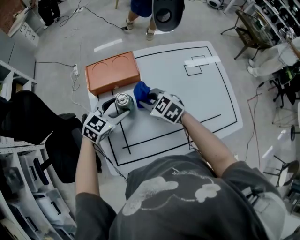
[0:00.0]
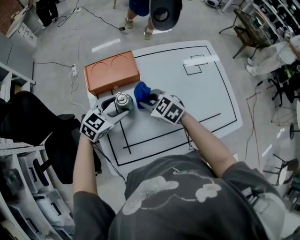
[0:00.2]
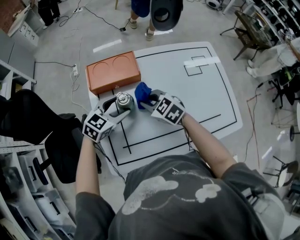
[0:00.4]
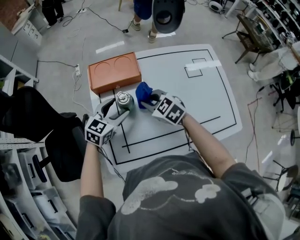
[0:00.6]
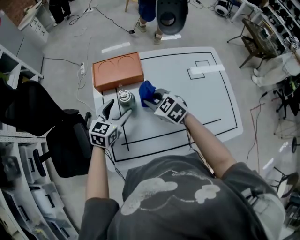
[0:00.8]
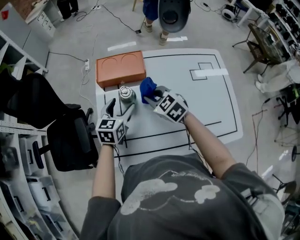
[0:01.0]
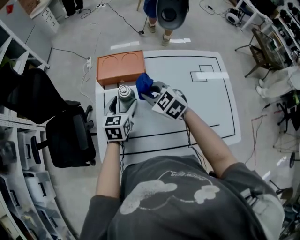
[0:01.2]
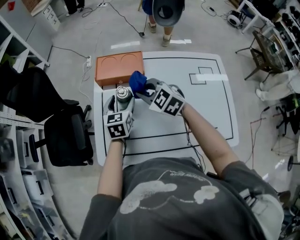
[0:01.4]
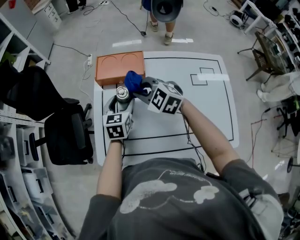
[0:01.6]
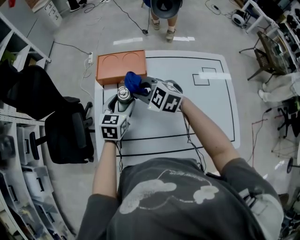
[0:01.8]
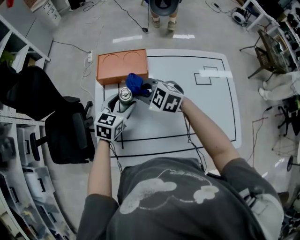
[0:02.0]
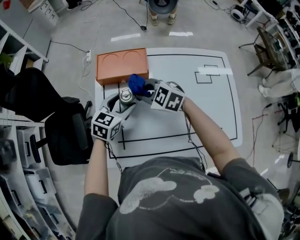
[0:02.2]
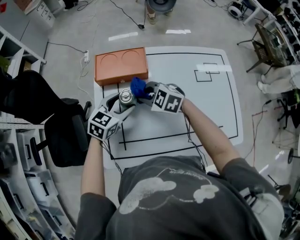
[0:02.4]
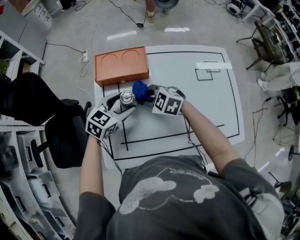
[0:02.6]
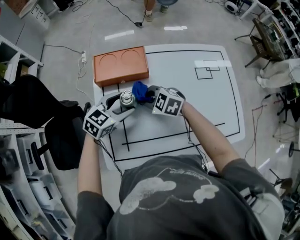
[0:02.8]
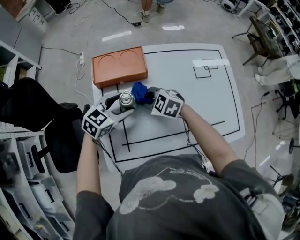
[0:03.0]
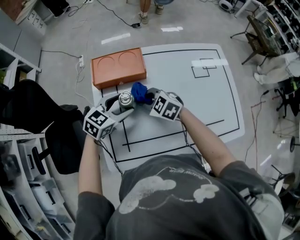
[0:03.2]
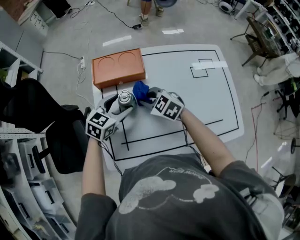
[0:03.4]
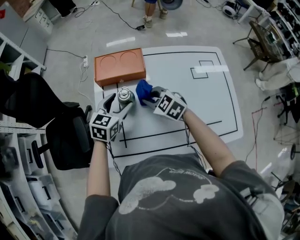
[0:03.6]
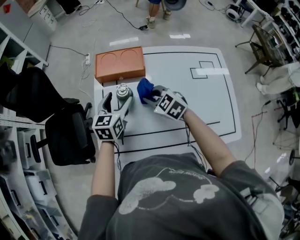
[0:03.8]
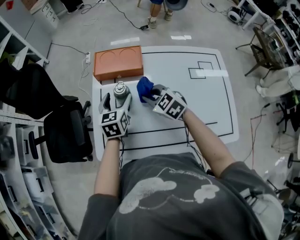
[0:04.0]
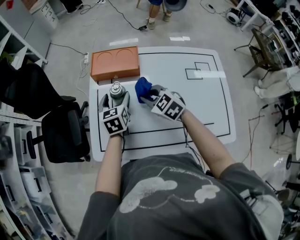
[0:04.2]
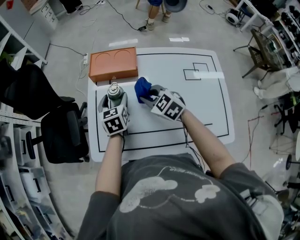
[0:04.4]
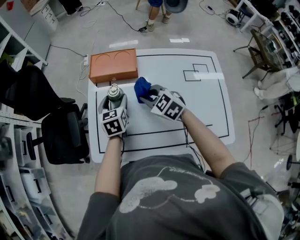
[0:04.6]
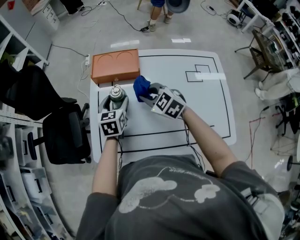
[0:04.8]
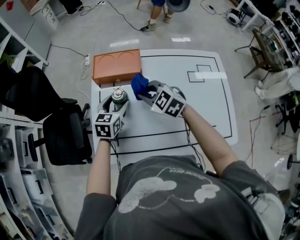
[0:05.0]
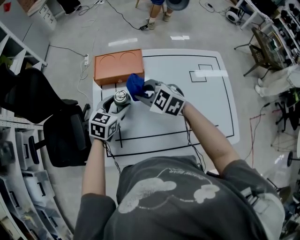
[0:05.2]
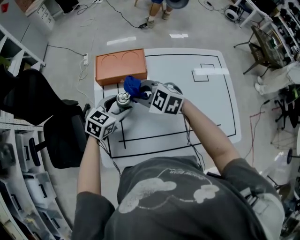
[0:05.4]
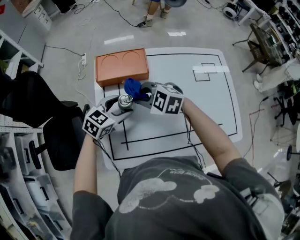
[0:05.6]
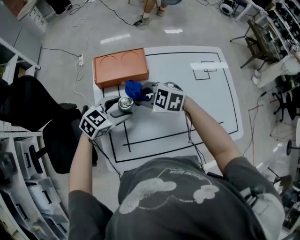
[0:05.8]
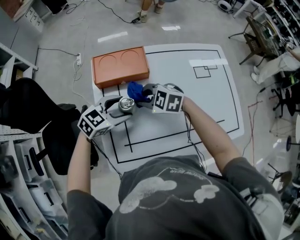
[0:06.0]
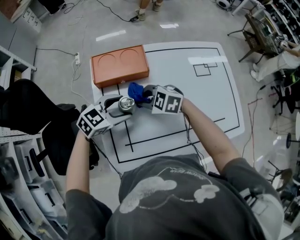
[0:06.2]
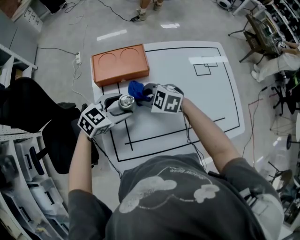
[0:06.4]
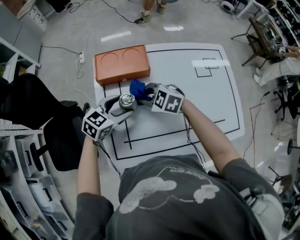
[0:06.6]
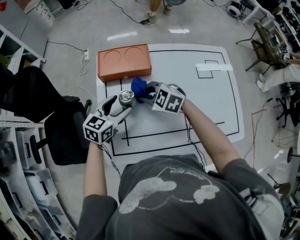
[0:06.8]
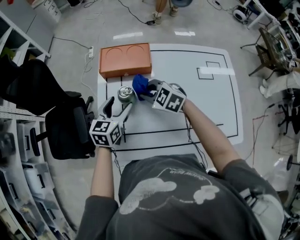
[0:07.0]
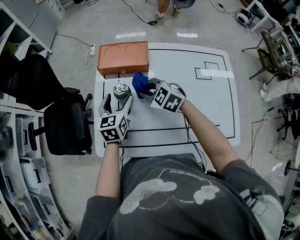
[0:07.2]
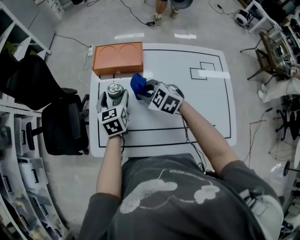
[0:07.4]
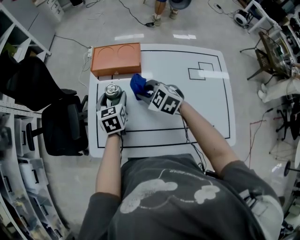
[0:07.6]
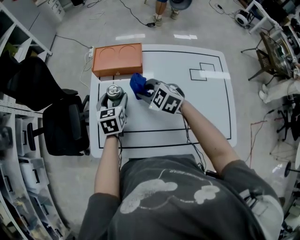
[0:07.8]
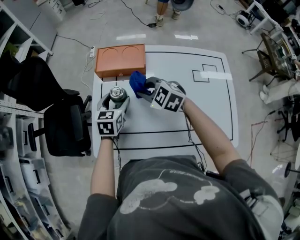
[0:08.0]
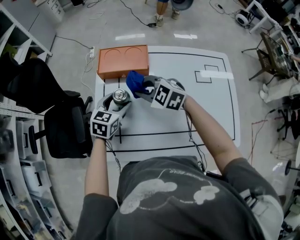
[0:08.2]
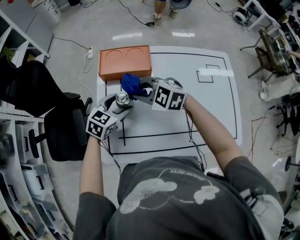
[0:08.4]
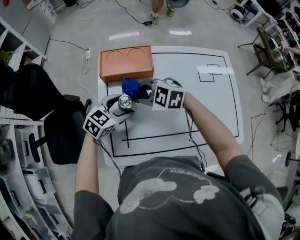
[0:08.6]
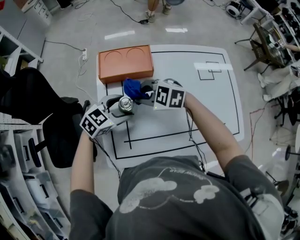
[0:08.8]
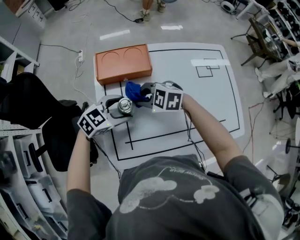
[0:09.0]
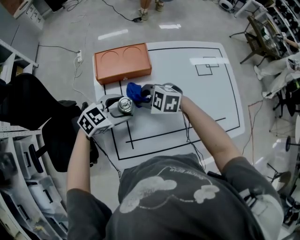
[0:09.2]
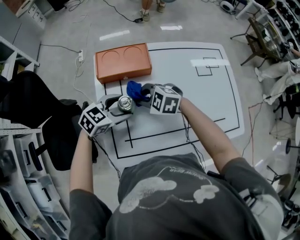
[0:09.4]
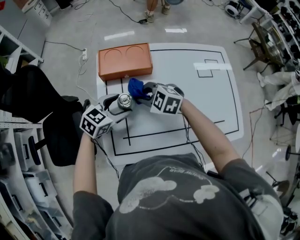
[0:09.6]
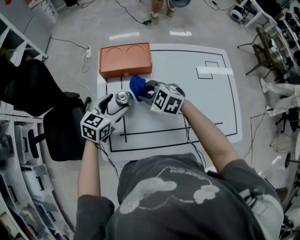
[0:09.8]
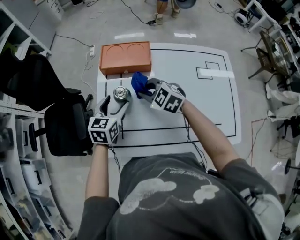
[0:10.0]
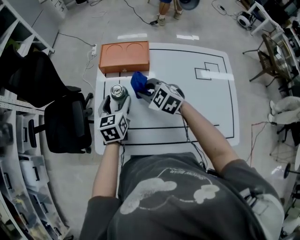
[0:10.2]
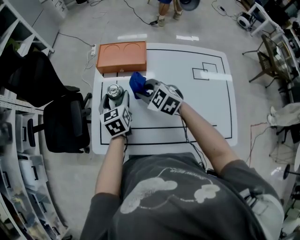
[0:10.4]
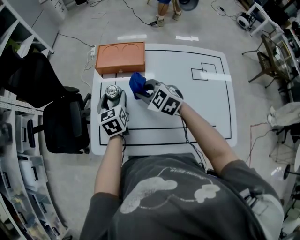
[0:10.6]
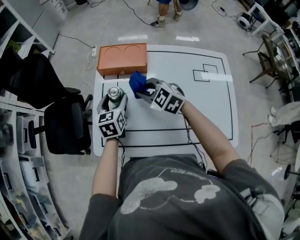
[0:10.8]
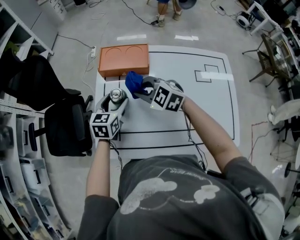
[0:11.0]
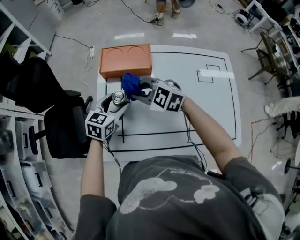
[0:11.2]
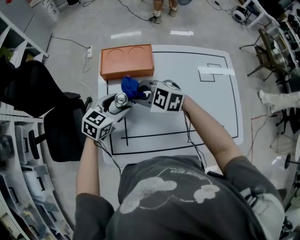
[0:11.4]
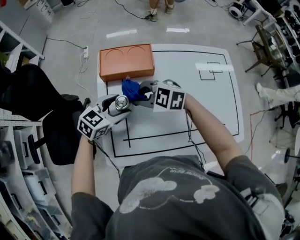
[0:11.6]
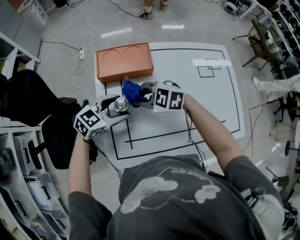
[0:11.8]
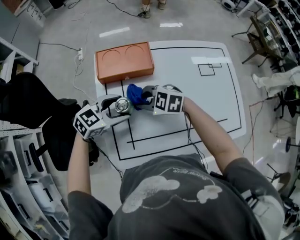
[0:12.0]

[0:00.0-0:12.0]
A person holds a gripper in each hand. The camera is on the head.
0:00.0 to 0:01.6: The left gripper rotates approximately 50 degrees; the right gripper is displaced upward by some 5 cm, and swivels approximately 30 degrees.
0:01.6 to 0:03.0: The right gripper shifts roughly 10 cm downward. Meanwhile the left gripper swivels approximately 50 degrees.
0:03.0 to 0:04.4: The right gripper shifts by some 10 cm. The left gripper swivels approximately 60 degrees.
0:04.4 to 0:06.0: The right gripper changes place by roughly 10 cm. The left gripper swivels about 70 degrees.
0:06.0 to 0:07.6: The right gripper changes place by approximately 5 cm, while the left gripper rotates some 70 degrees.
0:07.6 to 0:09.0: The right gripper changes place by some 10 cm. Meanwhile the left gripper turns by approximately 80 degrees.
0:09.0 to 0:10.4: The right gripper ends up roughly 5 cm from where it was, while the left gripper swivels about 80 degrees.
0:10.4 to 0:12.0: The right gripper moves some 5 cm. Meanwhile the left gripper swivels approximately 80 degrees.

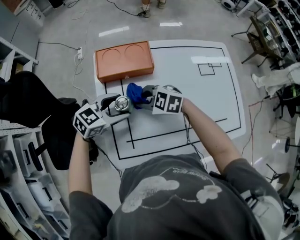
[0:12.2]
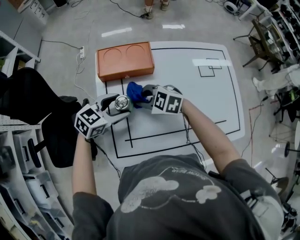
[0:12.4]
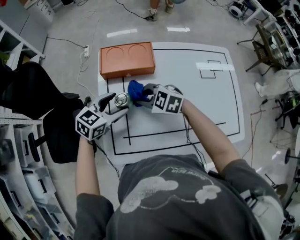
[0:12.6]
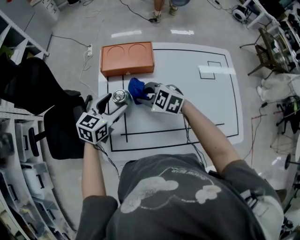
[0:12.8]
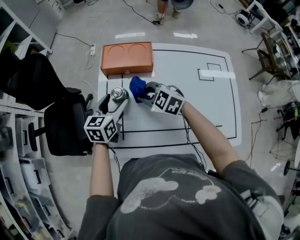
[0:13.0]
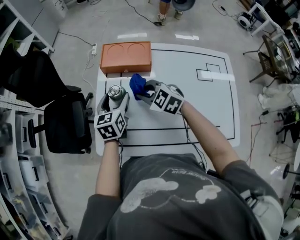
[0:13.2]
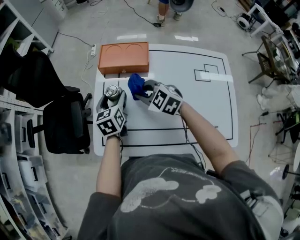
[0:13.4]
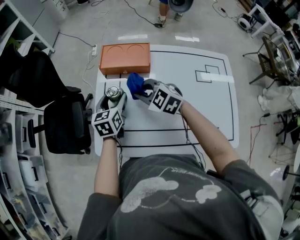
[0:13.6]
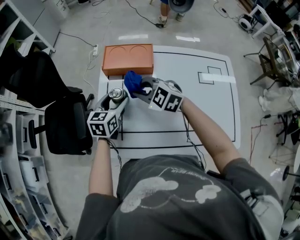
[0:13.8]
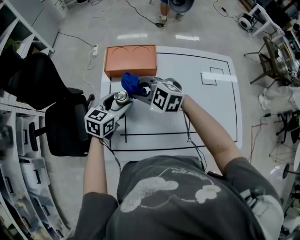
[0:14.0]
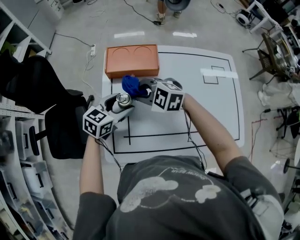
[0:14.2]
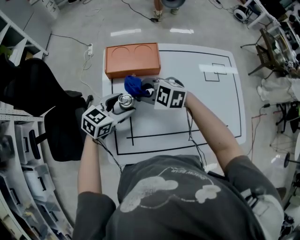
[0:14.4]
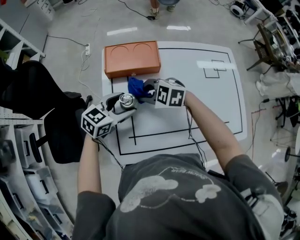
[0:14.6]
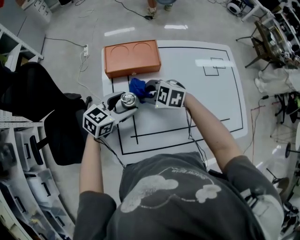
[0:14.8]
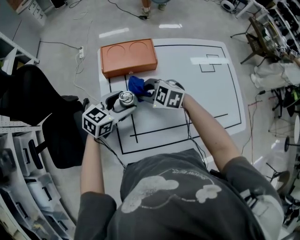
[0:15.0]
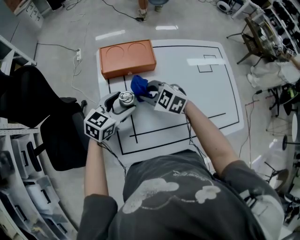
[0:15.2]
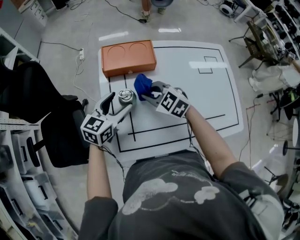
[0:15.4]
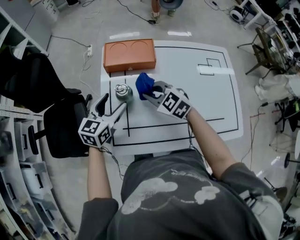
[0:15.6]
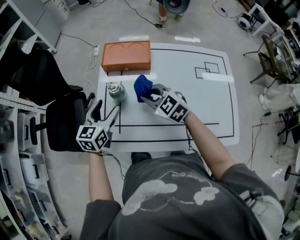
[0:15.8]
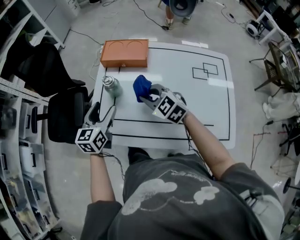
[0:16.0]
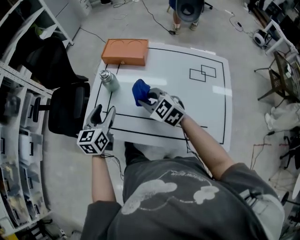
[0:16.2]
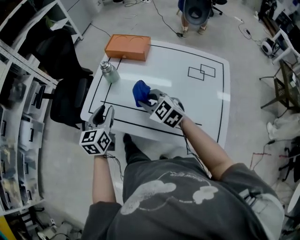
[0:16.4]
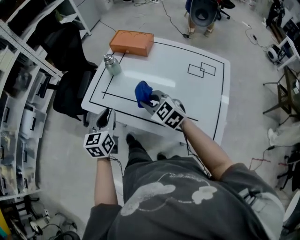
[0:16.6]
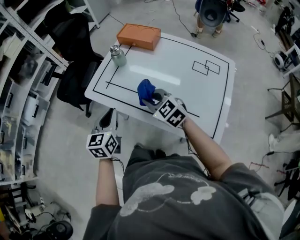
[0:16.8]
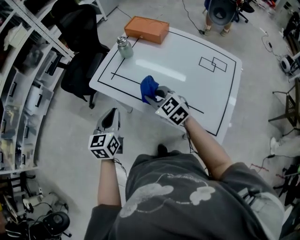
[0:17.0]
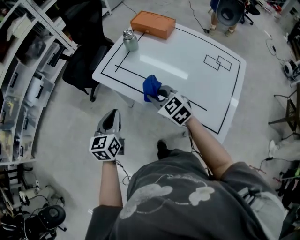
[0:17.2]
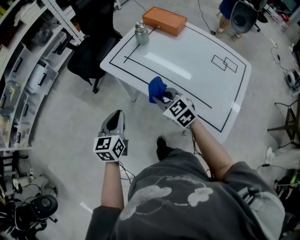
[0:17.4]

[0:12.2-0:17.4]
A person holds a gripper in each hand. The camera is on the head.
0:12.2 to 0:14.0: The right gripper heads upward, covering approximately 5 cm, while the left gripper rotates some 40 degrees.
0:14.0 to 0:15.6: The left gripper shifts by roughly 5 cm; the right gripper moves roughly 5 cm, and swivels some 20 degrees.
0:15.6 to 0:17.4: The left gripper changes place by about 40 cm, turns by some 50 degrees, and closes. Meanwhile the right gripper ends up approximately 30 cm from where it was, and rotates about 20 degrees.

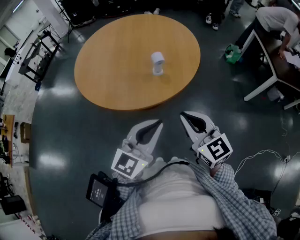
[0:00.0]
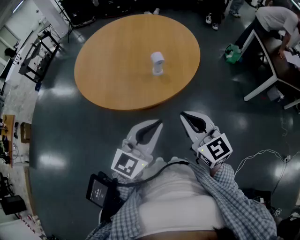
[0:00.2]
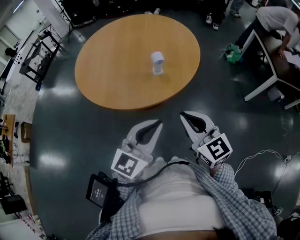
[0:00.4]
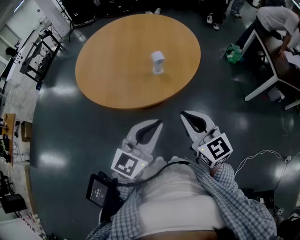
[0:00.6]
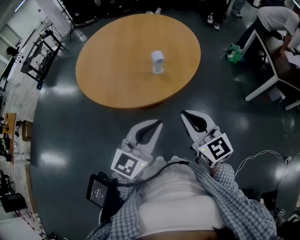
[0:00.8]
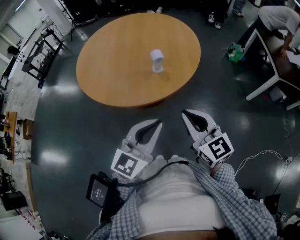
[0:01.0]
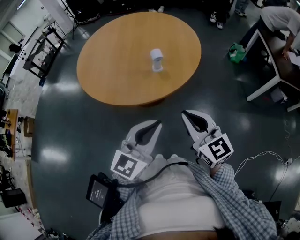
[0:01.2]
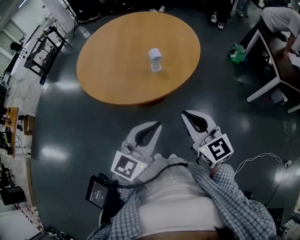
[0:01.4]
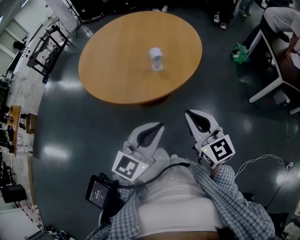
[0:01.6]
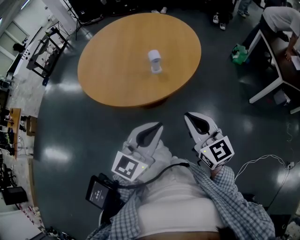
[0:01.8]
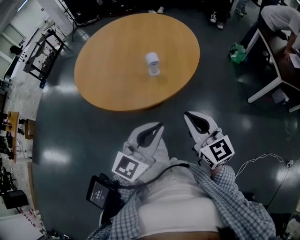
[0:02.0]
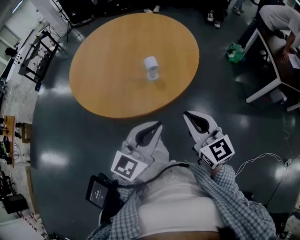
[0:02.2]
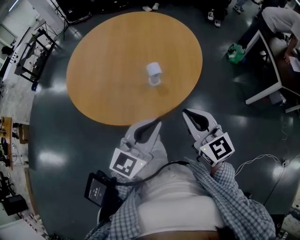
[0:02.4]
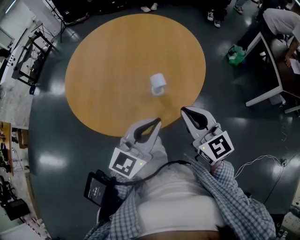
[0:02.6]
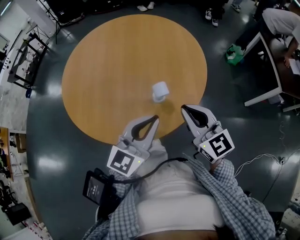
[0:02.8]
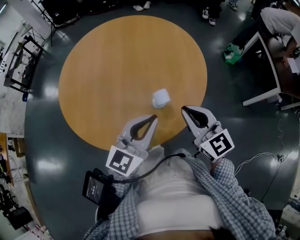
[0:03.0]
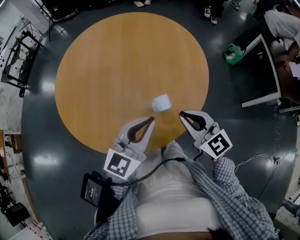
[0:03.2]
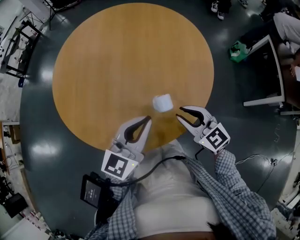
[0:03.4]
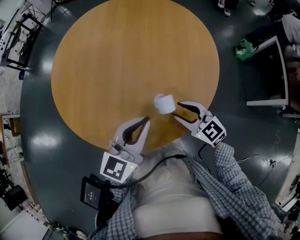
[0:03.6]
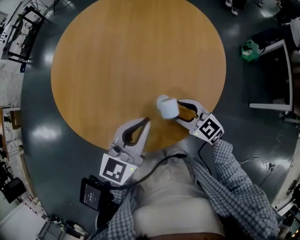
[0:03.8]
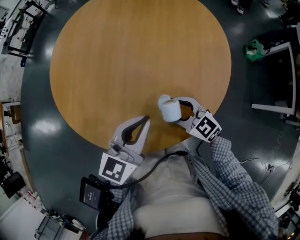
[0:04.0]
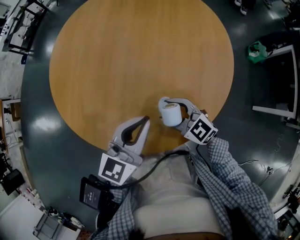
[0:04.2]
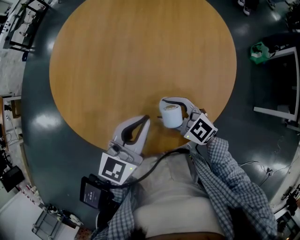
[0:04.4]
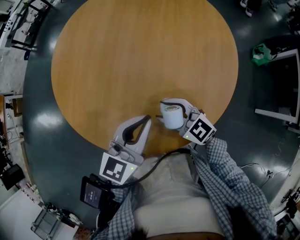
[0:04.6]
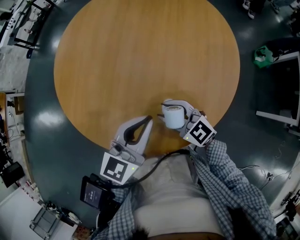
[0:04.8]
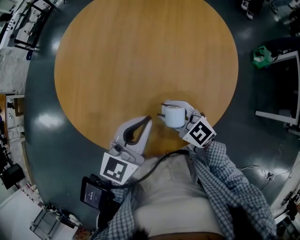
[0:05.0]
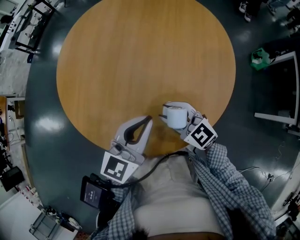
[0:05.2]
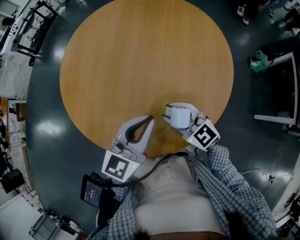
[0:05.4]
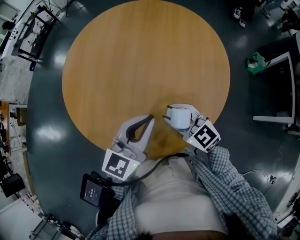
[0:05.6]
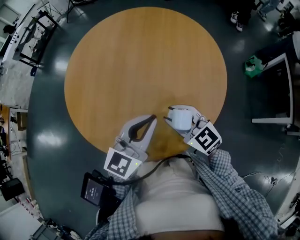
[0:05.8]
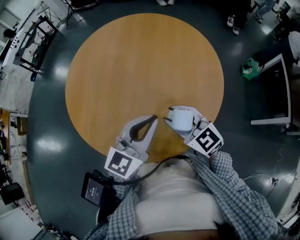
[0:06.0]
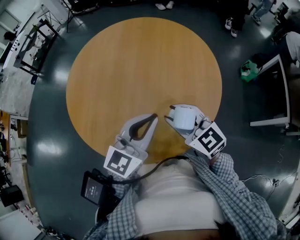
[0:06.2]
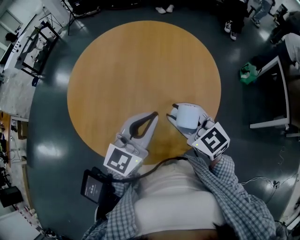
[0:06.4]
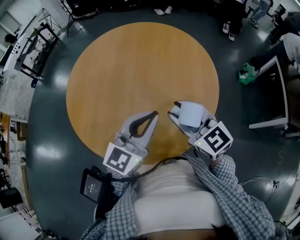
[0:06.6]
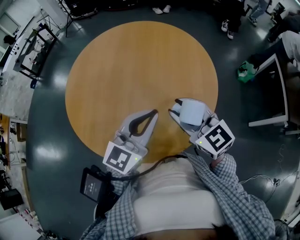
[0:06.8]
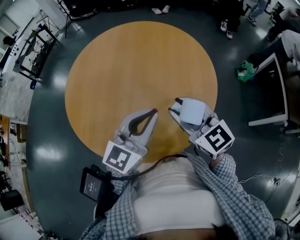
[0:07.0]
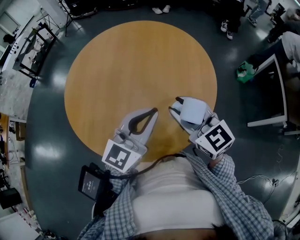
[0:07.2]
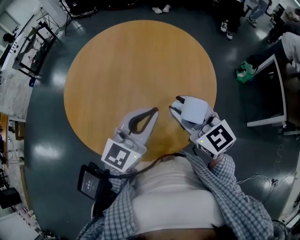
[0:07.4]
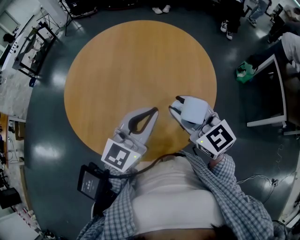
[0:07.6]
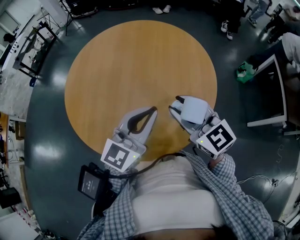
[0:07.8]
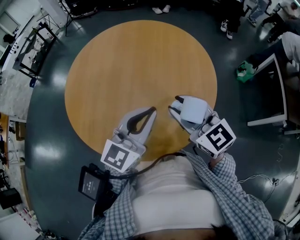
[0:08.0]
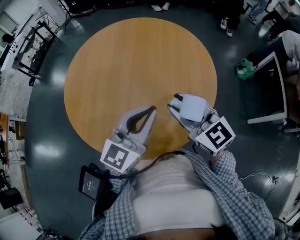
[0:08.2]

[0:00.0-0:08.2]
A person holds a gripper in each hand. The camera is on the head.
0:00.0 to 0:01.6: The right gripper moves to the right, roughly 5 cm.
0:01.6 to 0:03.2: The two grippers go about 25 cm forward.
0:03.2 to 0:05.0: The left gripper travels forward and downward by about 10 cm. Meanwhile the right gripper heads downward, to the left and forward, covering roughly 20 cm, rotates approximately 30 degrees, and opens up.
0:05.0 to 0:06.6: The left gripper shifts some 10 cm upward. The right gripper travels upward by roughly 15 cm.
0:06.6 to 0:08.2: The grippers move only a little.
